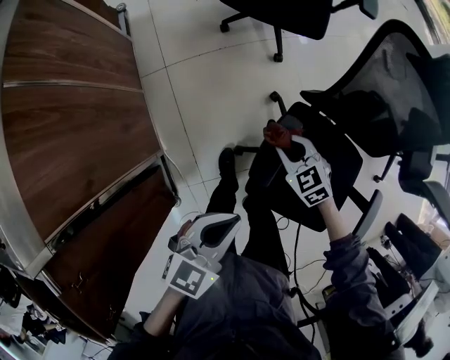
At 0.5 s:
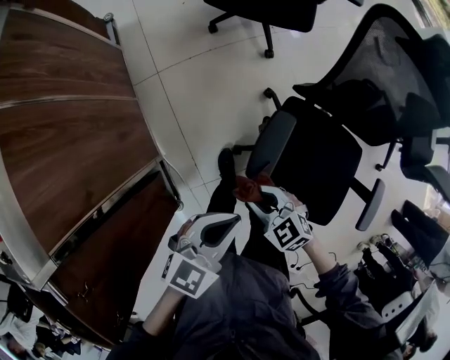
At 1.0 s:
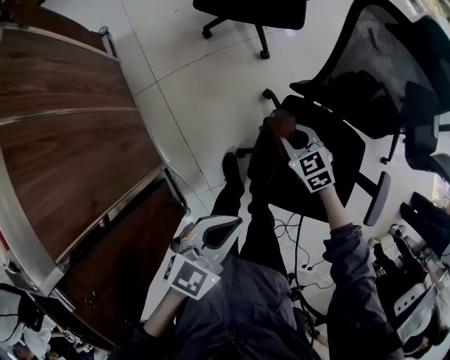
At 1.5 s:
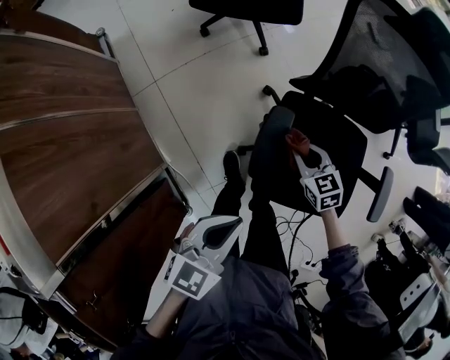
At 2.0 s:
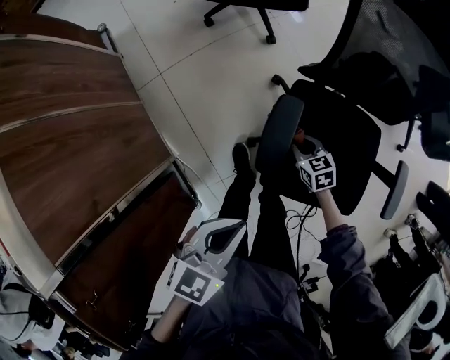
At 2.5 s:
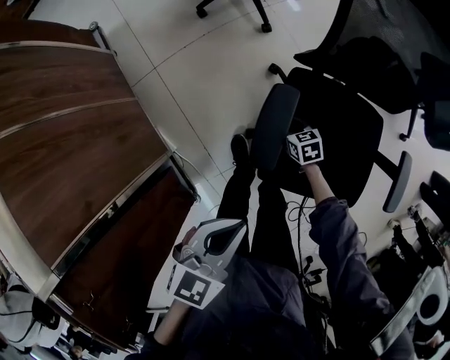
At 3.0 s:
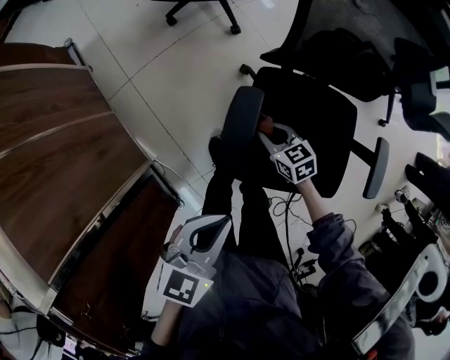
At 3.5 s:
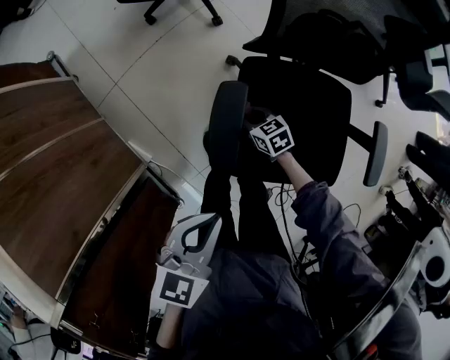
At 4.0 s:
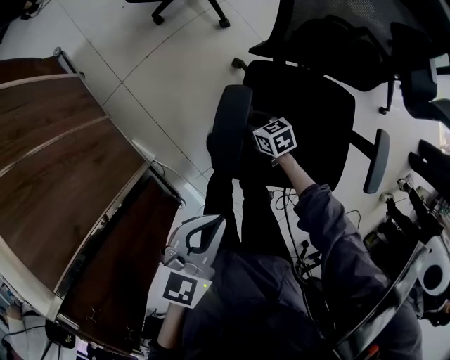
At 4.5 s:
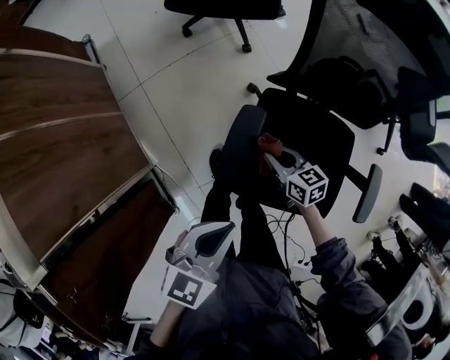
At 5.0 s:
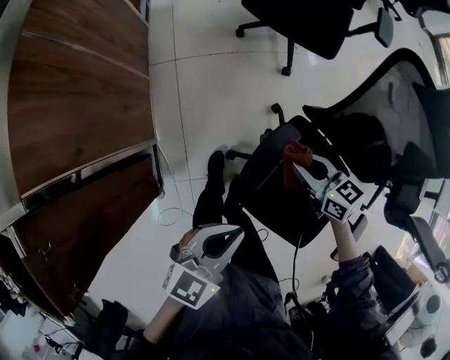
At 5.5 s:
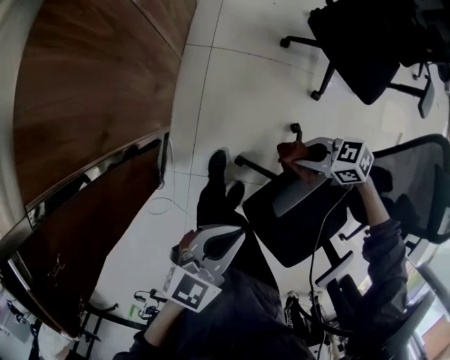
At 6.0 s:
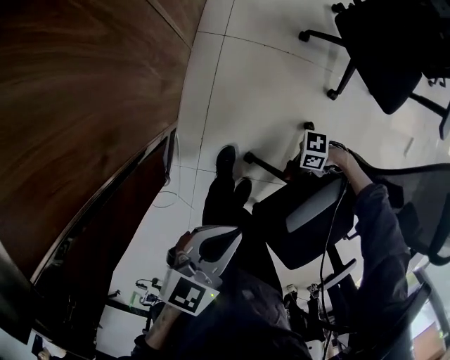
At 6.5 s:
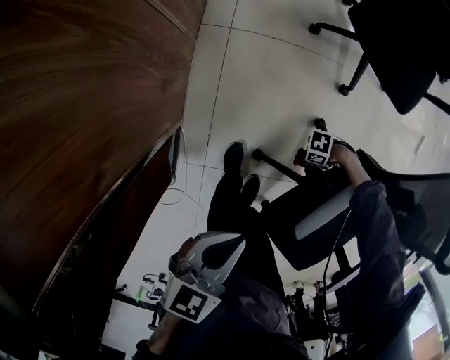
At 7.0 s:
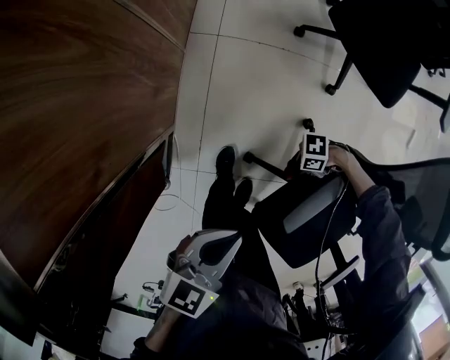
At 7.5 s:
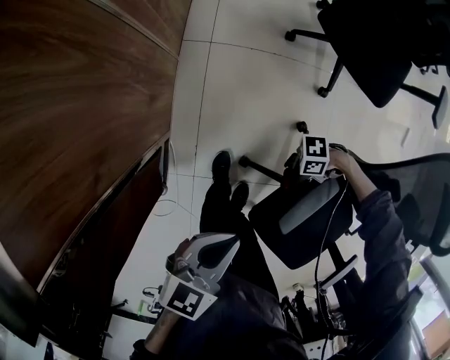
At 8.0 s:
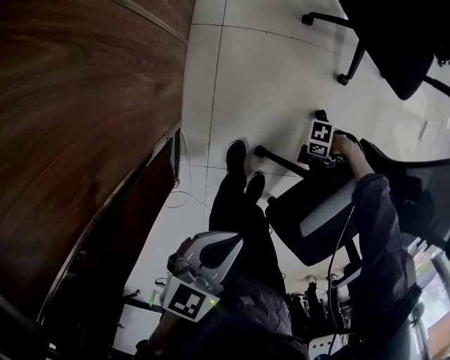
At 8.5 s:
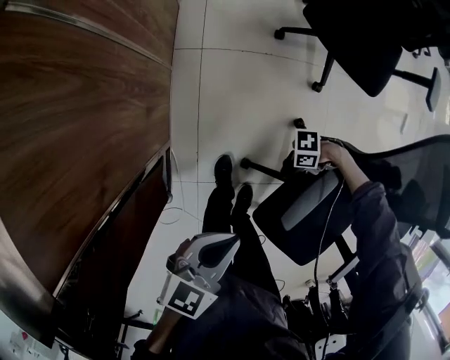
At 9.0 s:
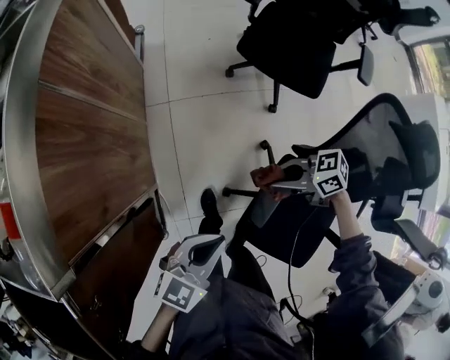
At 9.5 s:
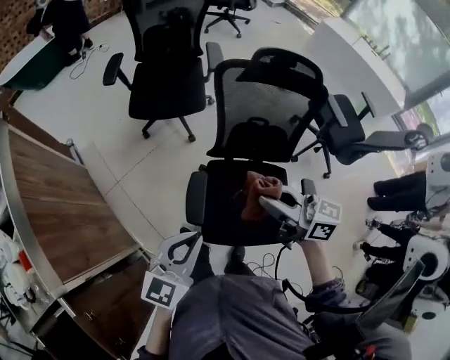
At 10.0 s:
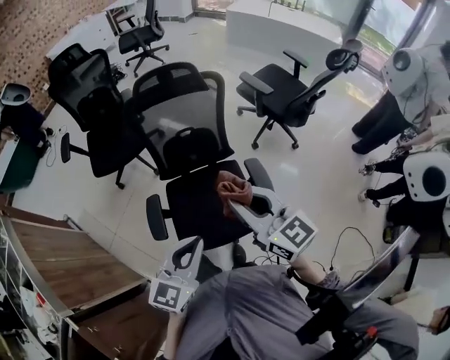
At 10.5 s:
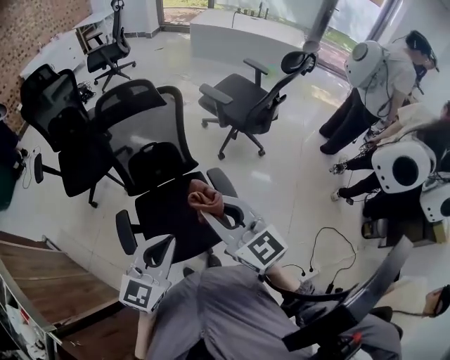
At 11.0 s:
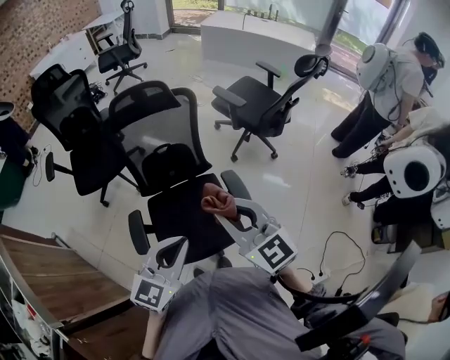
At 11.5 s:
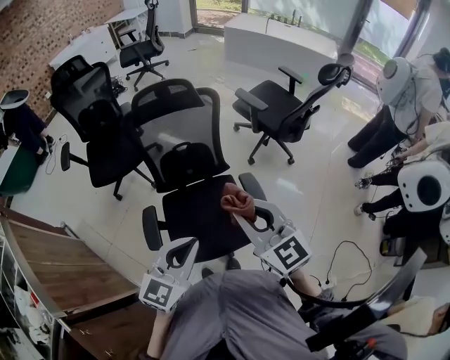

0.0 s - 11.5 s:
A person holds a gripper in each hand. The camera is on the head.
0.0 s - 2.0 s: The right gripper moves forward and backward over some 20 cm, changing direction 2 times, and turns by about 30 degrees.
2.0 s - 4.0 s: The right gripper goes up and down, about 10 cm each way, reversing 2 times; the left gripper ends up about 5 cm from where it was.
4.0 s - 6.0 s: The right gripper goes upward and returns, roughly 25 cm each way, and turns by about 120 degrees. The left gripper changes place by some 20 cm, and changes its angle by about 40 degrees.
6.0 s - 7.5 s: The right gripper reaches about 10 cm downward, then returns.
7.5 s - 9.5 s: The left gripper moves upward, roughly 20 cm, and turns by some 40 degrees. Meanwhile the right gripper heads upward, covering some 50 cm, and turns by about 140 degrees.
9.5 s - 11.5 s: The right gripper ends up about 25 cm from where it was, and swivels about 50 degrees. The left gripper moves about 25 cm, and rotates about 20 degrees.

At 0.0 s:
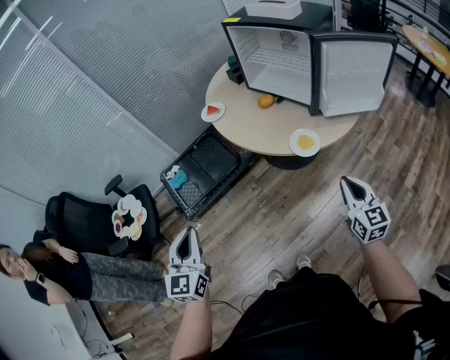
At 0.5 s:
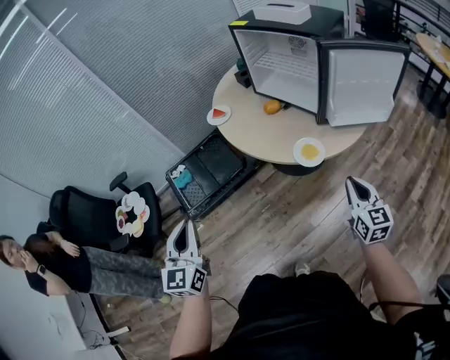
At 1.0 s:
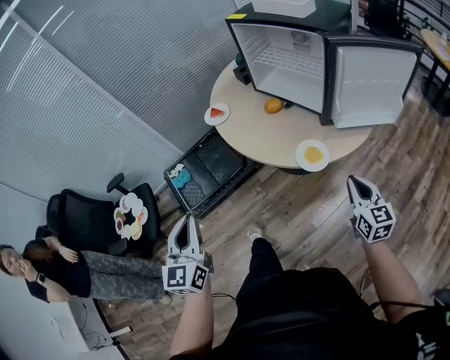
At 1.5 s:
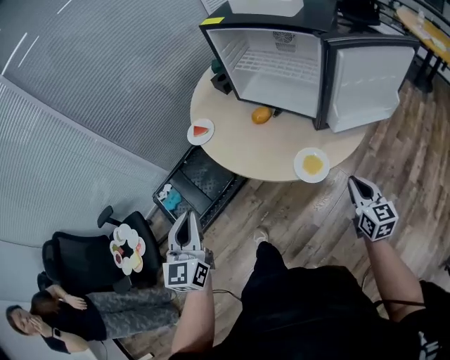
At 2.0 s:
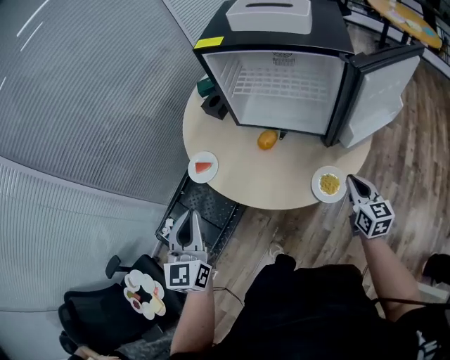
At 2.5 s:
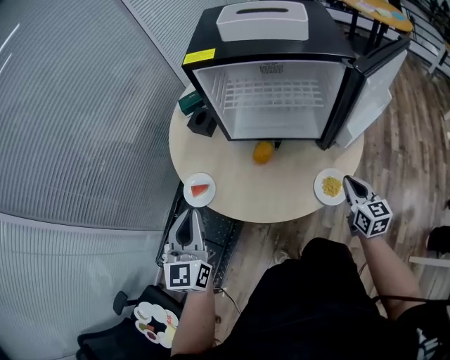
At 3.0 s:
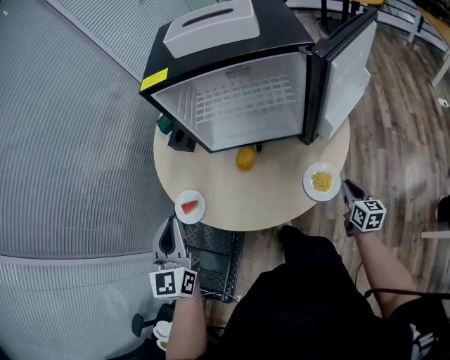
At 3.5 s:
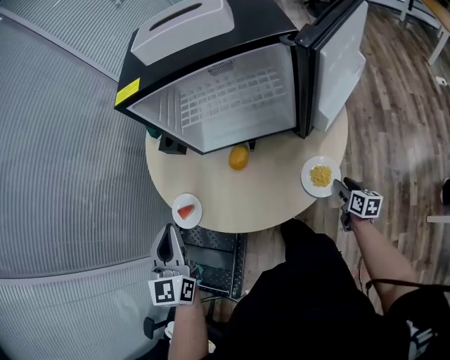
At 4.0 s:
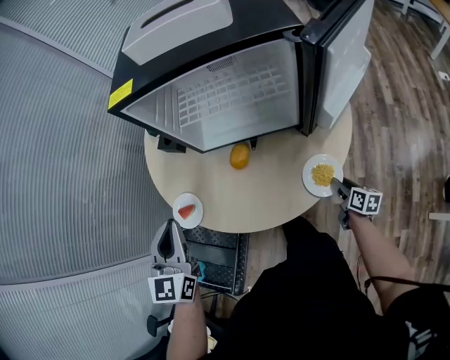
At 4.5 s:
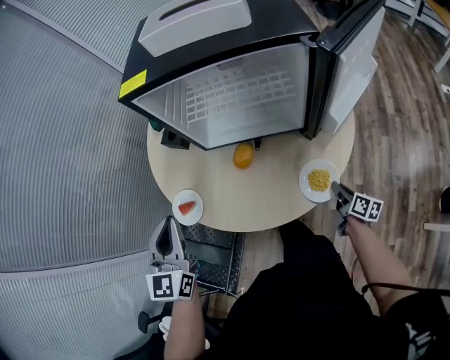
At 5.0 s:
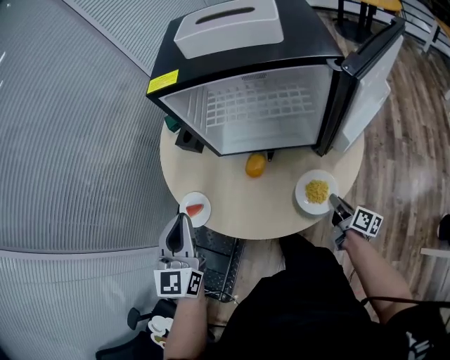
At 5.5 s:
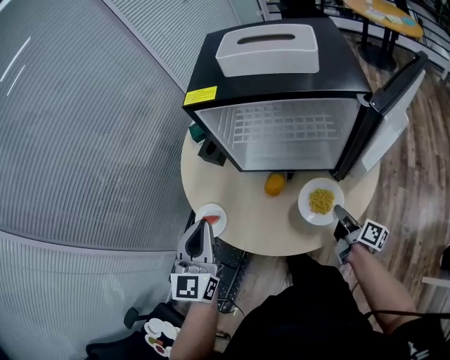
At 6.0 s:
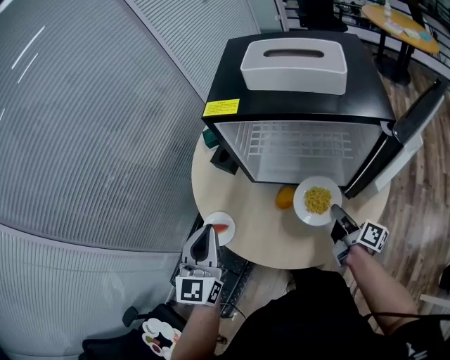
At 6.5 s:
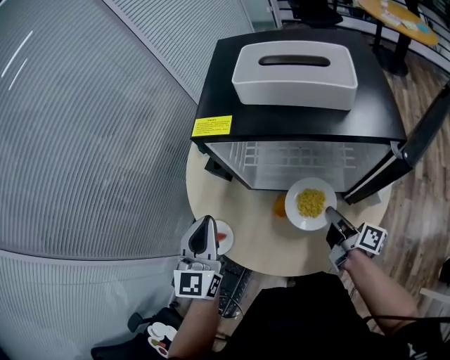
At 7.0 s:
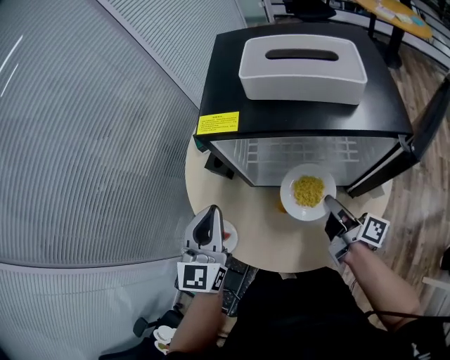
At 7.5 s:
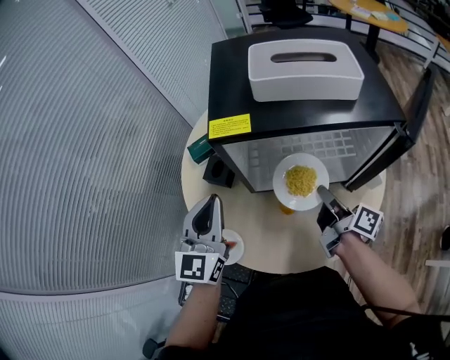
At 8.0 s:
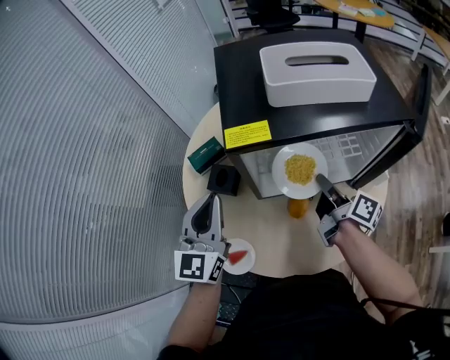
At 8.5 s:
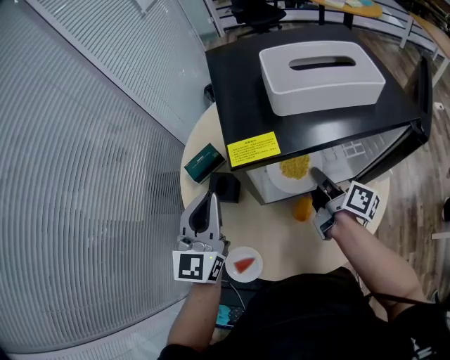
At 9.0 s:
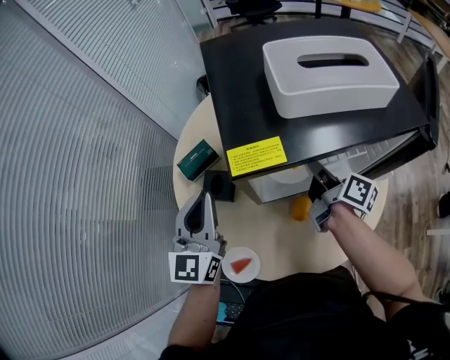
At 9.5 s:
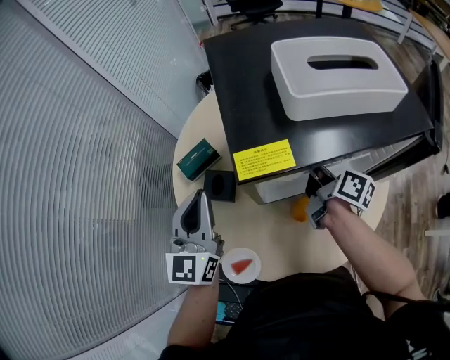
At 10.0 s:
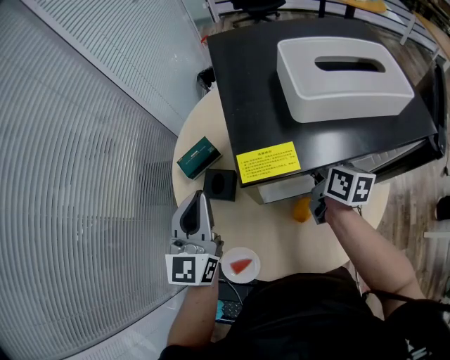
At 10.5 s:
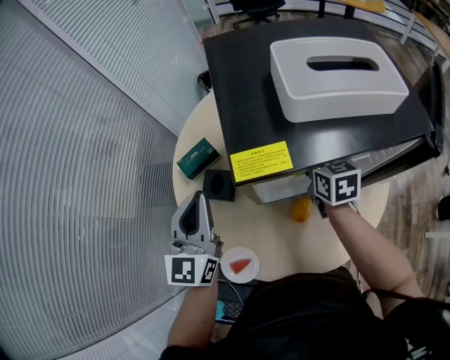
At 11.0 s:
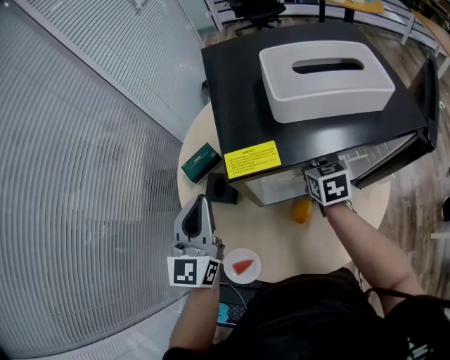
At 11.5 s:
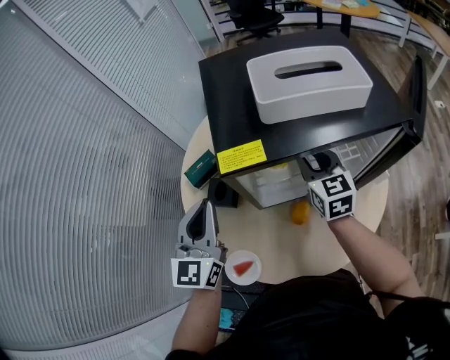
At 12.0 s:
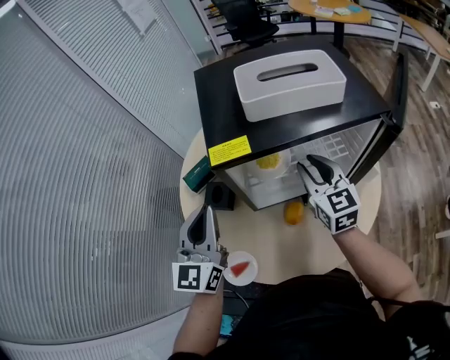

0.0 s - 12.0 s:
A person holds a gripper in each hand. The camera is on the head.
0.0 s - 2.0 s: The left gripper goes about 50 cm forward, and rotates roughly 20 degrees. Meanwhile the right gripper is displaced forward by roughly 25 cm, and rotates some 30 degrees.
2.0 s - 4.0 s: The right gripper travels downward by some 20 cm, twists about 40 degrees clockwise, seen from behind, and opens; the left gripper is displaced forward by some 15 cm, and rotates about 20 degrees.
4.0 s - 6.0 s: The left gripper moves approximately 5 cm. Meanwhile the right gripper heads upward, forward and to the left, covering roughly 30 cm, tips its fingers upward by some 30 degrees, and closes.
6.0 s - 8.0 s: The left gripper moves forward, some 20 cm, and changes its angle by roughly 20 degrees. The right gripper shifts some 15 cm forward, to the left and upward.
8.0 s - 10.0 s: The grippers both shift forward by roughly 10 cm. The right gripper turns by some 30 degrees.
10.0 s - 12.0 s: The right gripper shifts some 10 cm backward and upward, and twists roughly 40 degrees counterclockwise, seen from behind. The left gripper goes roughly 10 cm backward and to the right.

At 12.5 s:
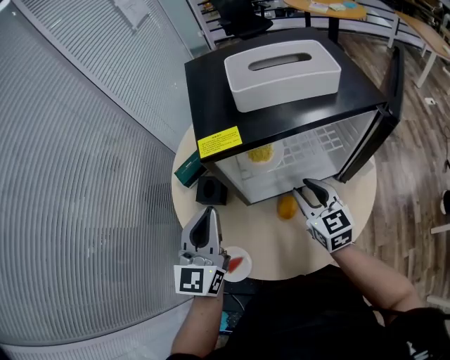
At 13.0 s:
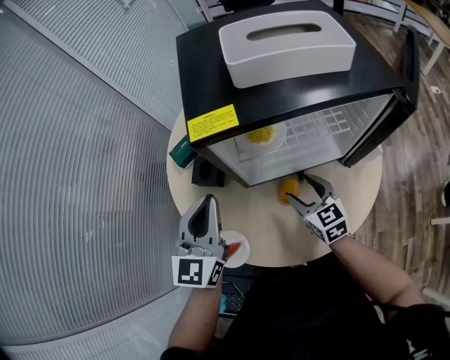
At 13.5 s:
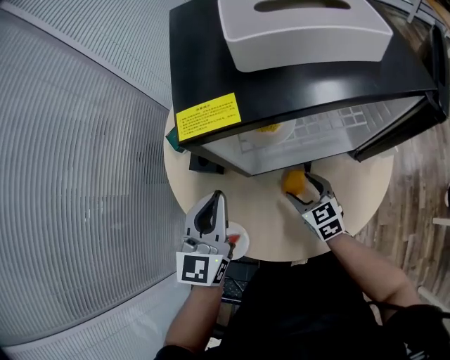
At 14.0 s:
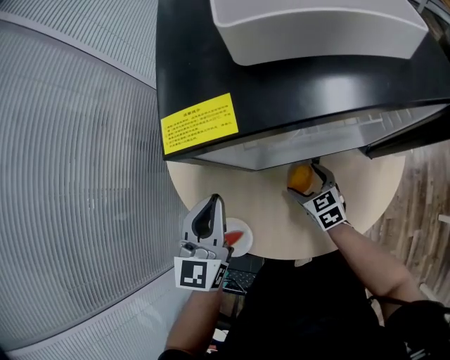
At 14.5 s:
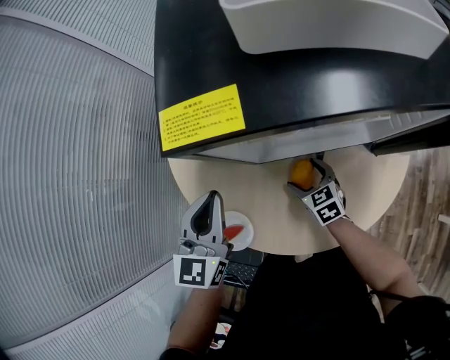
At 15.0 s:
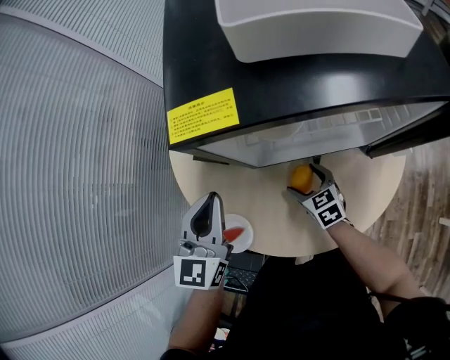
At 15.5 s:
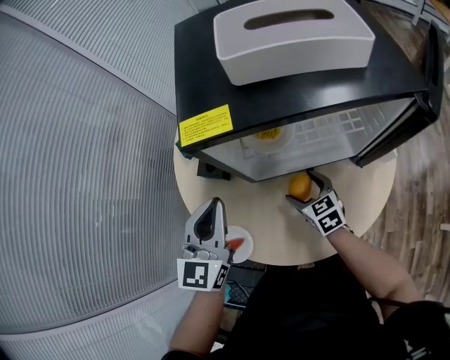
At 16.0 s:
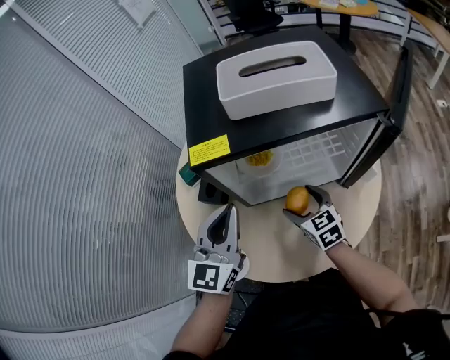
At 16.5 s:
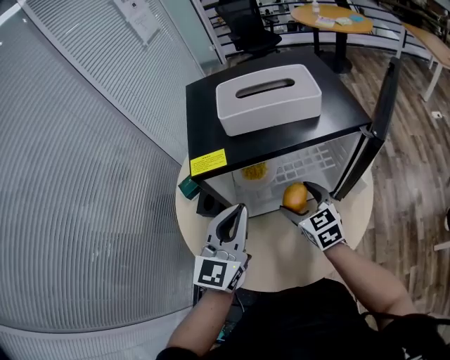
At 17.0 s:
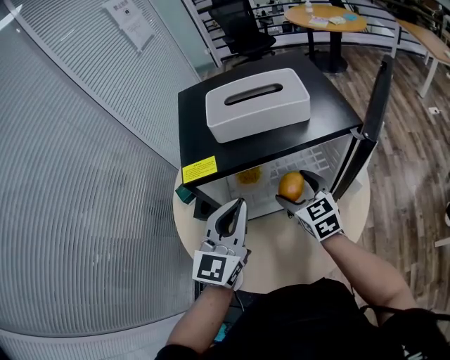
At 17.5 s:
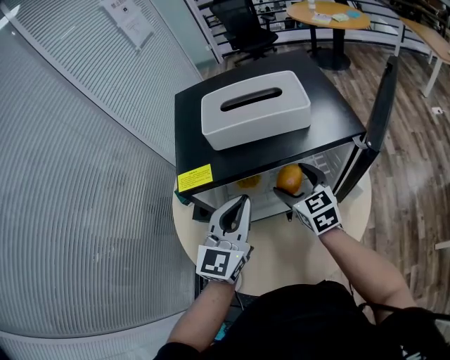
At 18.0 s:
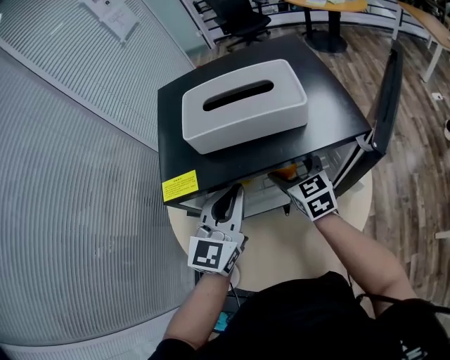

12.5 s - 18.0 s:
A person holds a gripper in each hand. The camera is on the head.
12.5 s - 14.5 s: The right gripper goes roughly 25 cm downward, turns by approximately 30 degrees, and opens up; the left gripper is displaced downward by roughly 10 cm.
14.5 s - 16.0 s: The right gripper heads upward, covering roughly 15 cm. Meanwhile the left gripper heads upward and to the right, covering about 15 cm.
16.0 s - 18.0 s: The right gripper heads forward and upward, covering about 15 cm. The left gripper goes approximately 15 cm to the right and forward.
